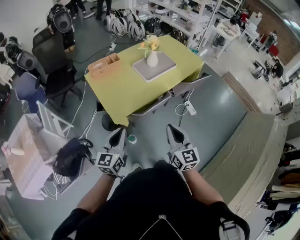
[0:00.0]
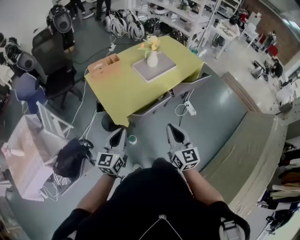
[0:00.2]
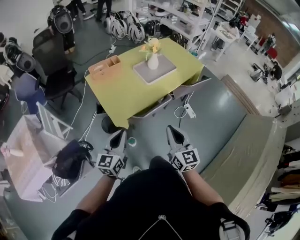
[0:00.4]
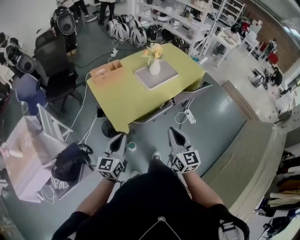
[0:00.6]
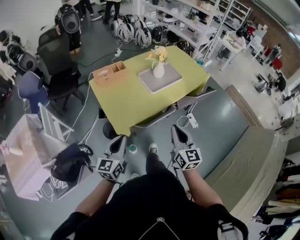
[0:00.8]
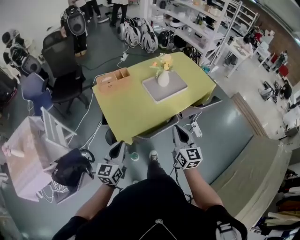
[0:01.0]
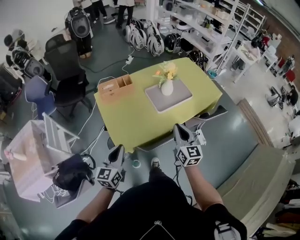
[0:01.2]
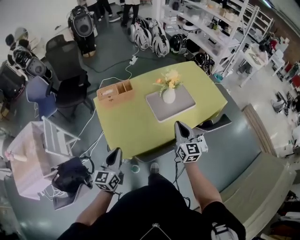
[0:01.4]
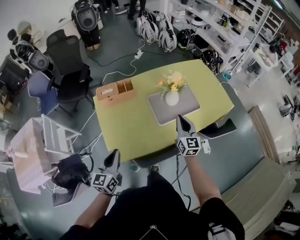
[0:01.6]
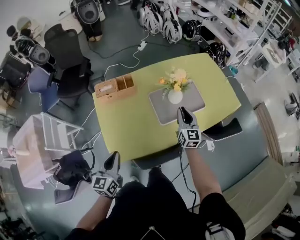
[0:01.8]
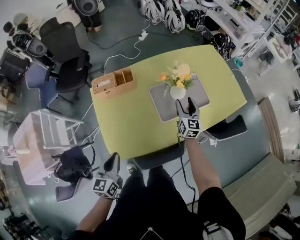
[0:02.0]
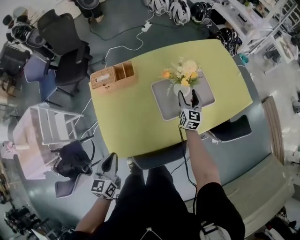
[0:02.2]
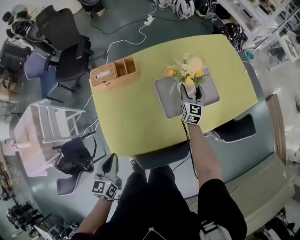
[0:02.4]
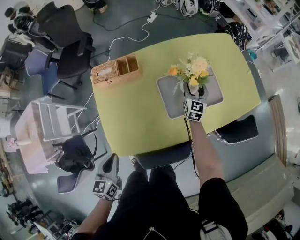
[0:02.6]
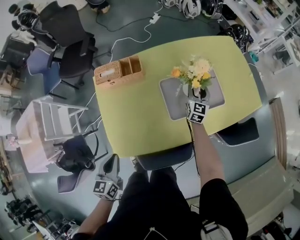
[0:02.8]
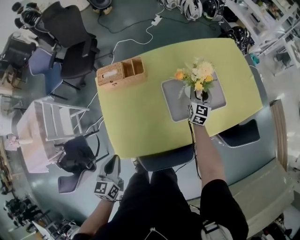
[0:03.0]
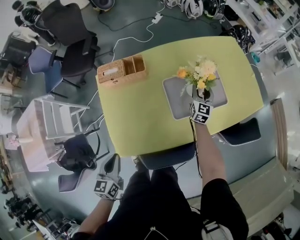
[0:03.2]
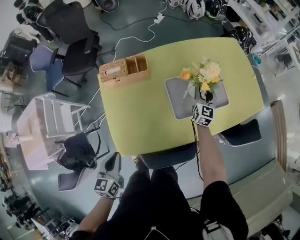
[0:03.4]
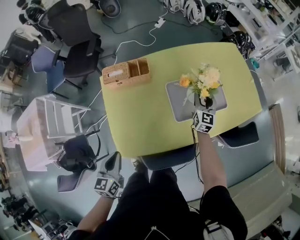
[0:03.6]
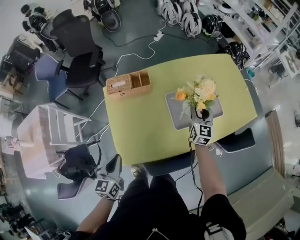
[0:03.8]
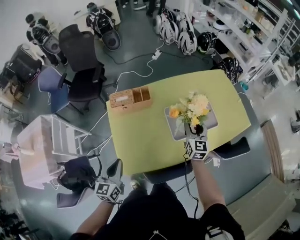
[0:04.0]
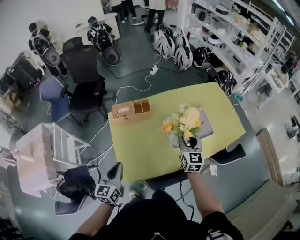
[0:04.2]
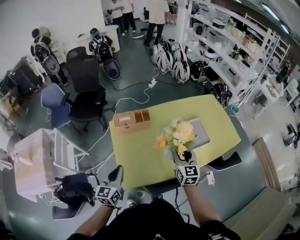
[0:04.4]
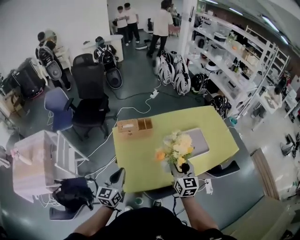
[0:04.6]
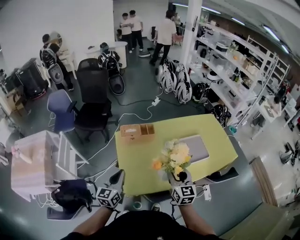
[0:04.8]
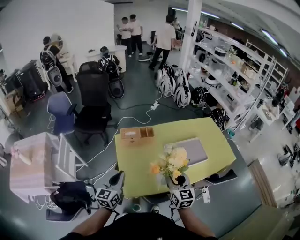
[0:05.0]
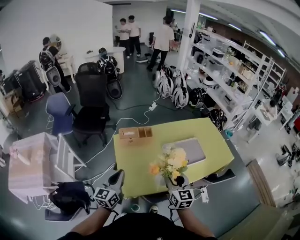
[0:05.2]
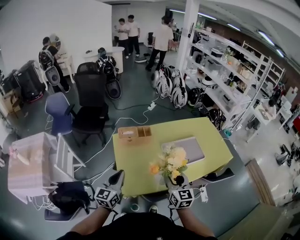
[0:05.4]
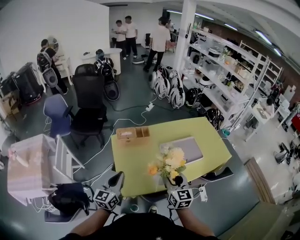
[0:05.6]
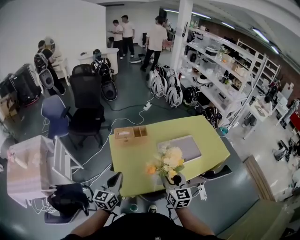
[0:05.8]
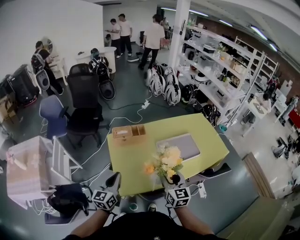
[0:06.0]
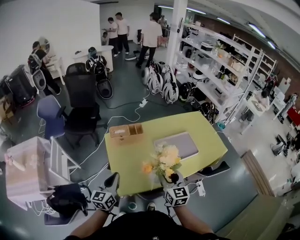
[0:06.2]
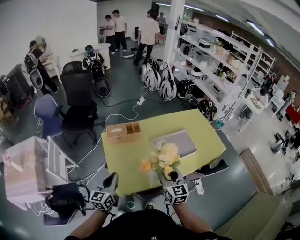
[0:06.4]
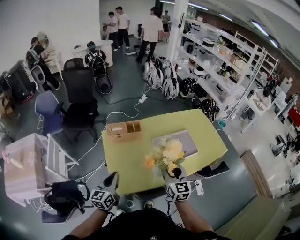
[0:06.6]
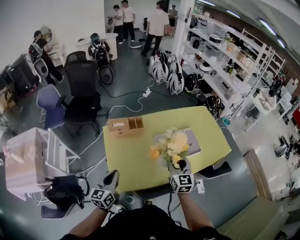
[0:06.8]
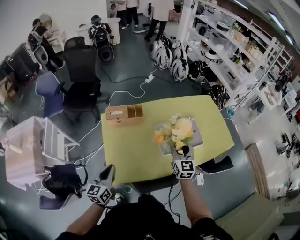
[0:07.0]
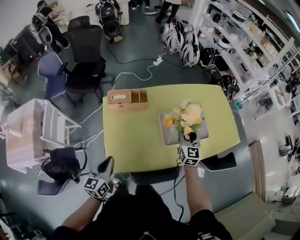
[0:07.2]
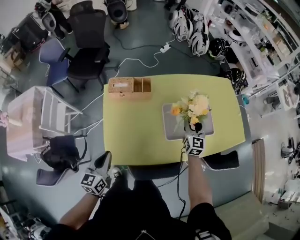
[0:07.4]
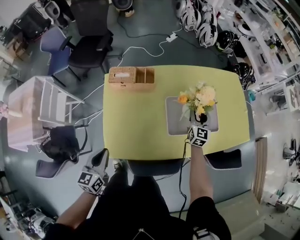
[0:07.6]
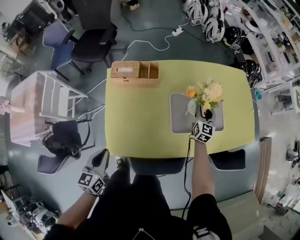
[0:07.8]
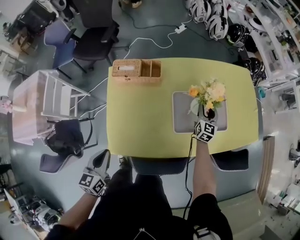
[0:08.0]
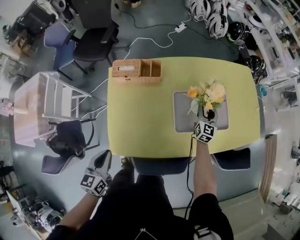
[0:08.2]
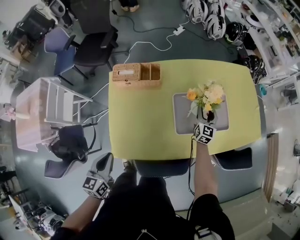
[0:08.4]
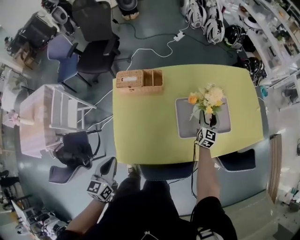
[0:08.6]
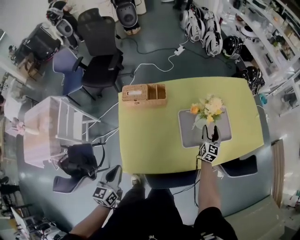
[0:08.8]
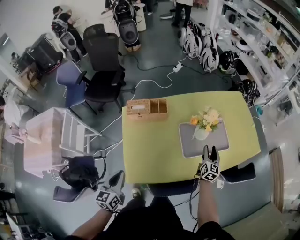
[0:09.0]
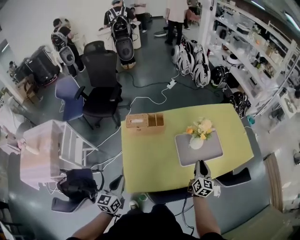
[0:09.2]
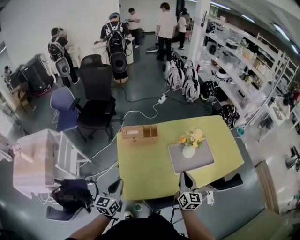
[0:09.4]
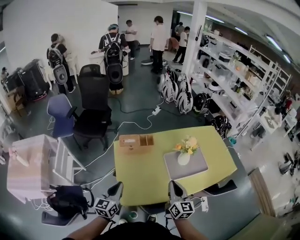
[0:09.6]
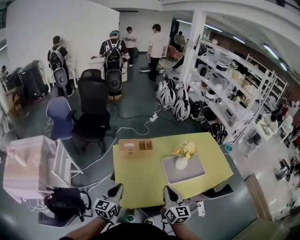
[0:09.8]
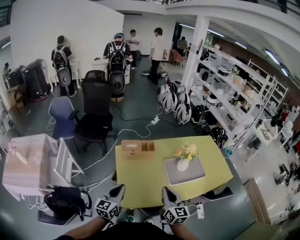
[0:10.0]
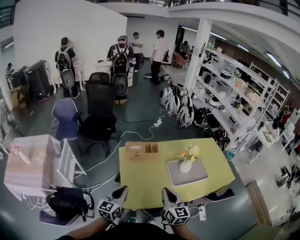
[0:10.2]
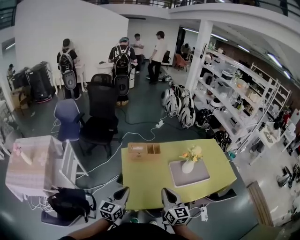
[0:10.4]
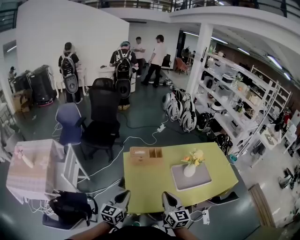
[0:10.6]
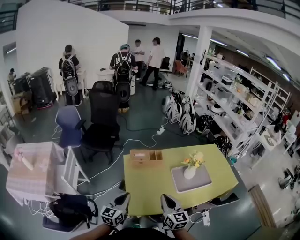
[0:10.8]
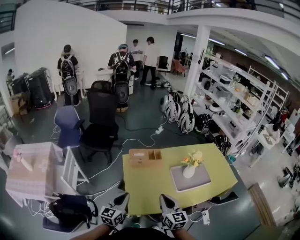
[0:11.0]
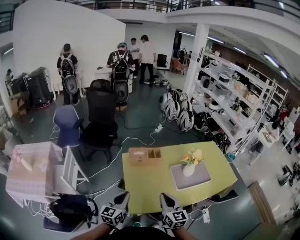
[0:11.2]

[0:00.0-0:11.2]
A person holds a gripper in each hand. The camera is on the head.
0:00.0 to 0:01.6: The right gripper is displaced forward by some 50 cm. The left gripper travels forward by roughly 30 cm, and turns by roughly 20 degrees.
0:01.6 to 0:03.2: The right gripper travels forward and downward by some 30 cm, and opens its fingers. The left gripper heads downward, covering some 10 cm.
0:03.2 to 0:04.8: The right gripper is displaced backward, upward and to the left by about 50 cm. The left gripper heads upward and to the left, covering approximately 15 cm, and turns by approximately 20 degrees.
0:04.8 to 0:06.4: The grippers move only a little.
0:06.4 to 0:08.0: The right gripper goes about 50 cm forward, downward and to the right. Meanwhile the left gripper heads downward, covering approximately 15 cm, and changes its angle by roughly 30 degrees.
0:08.0 to 0:09.6: The right gripper shifts about 50 cm backward, upward and to the left, rotates about 20 degrees, and closes, while the left gripper is displaced upward and to the left by roughly 15 cm, and rotates approximately 20 degrees.
0:09.6 to 0:11.2: The right gripper moves to the left and backward, about 15 cm. The left gripper changes place by approximately 5 cm.

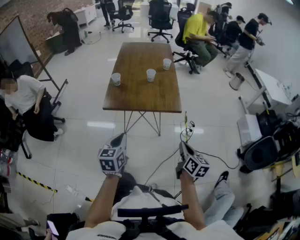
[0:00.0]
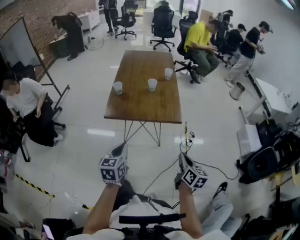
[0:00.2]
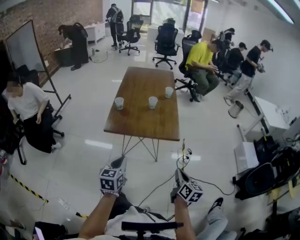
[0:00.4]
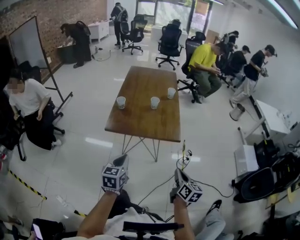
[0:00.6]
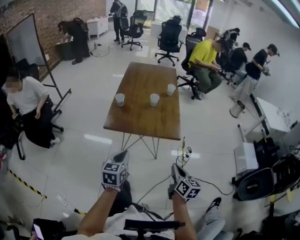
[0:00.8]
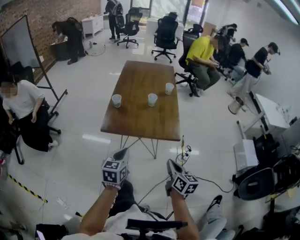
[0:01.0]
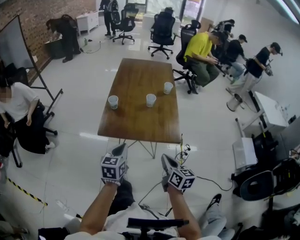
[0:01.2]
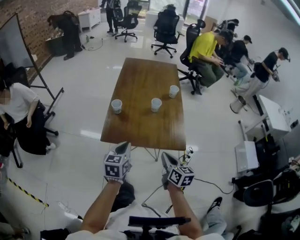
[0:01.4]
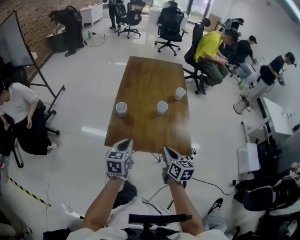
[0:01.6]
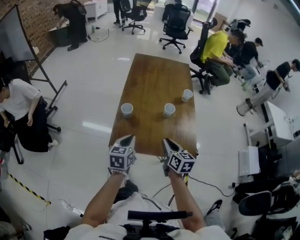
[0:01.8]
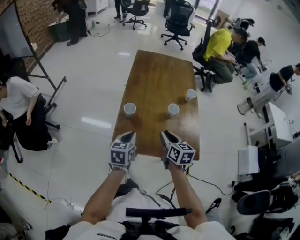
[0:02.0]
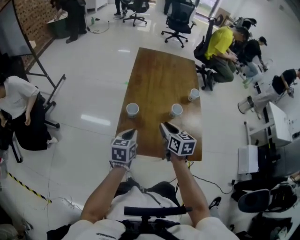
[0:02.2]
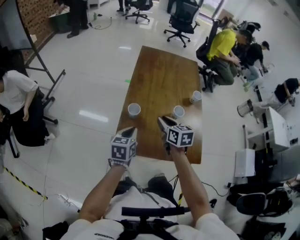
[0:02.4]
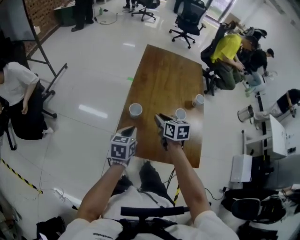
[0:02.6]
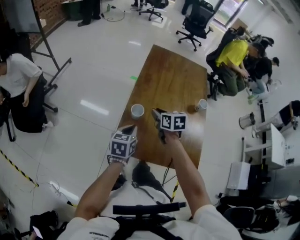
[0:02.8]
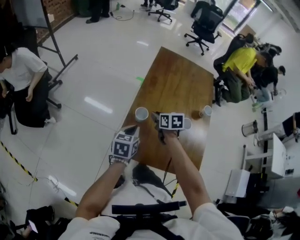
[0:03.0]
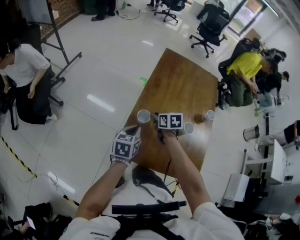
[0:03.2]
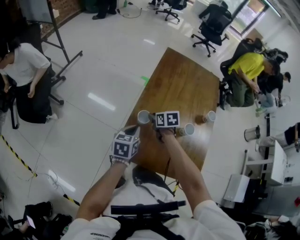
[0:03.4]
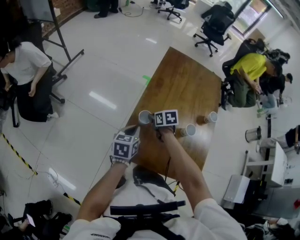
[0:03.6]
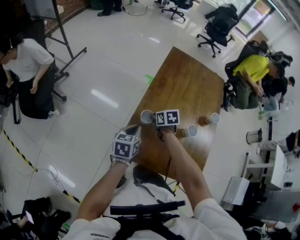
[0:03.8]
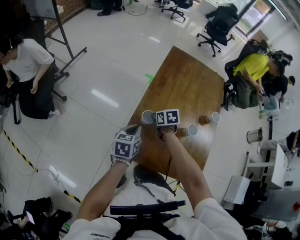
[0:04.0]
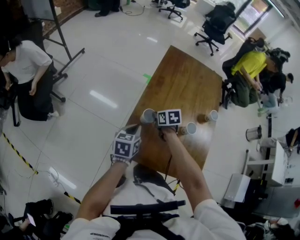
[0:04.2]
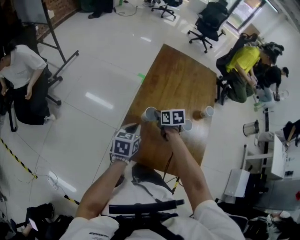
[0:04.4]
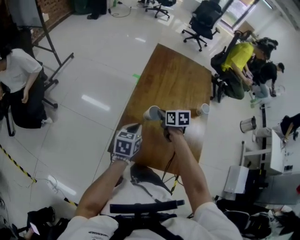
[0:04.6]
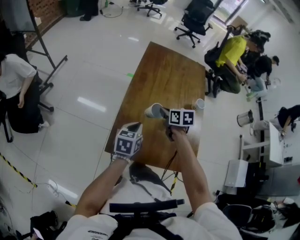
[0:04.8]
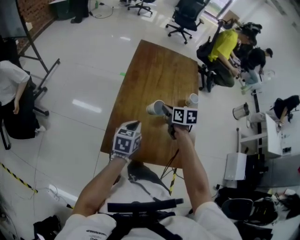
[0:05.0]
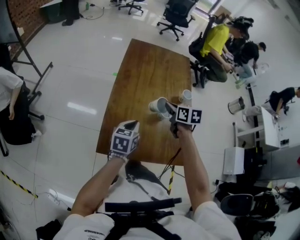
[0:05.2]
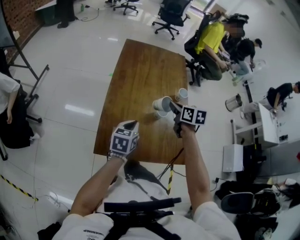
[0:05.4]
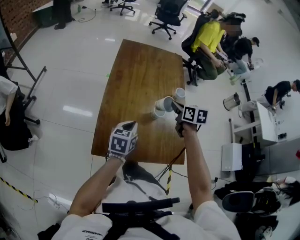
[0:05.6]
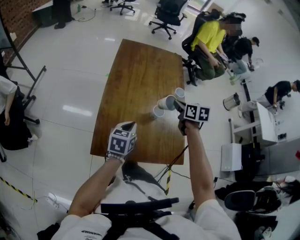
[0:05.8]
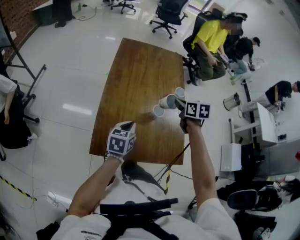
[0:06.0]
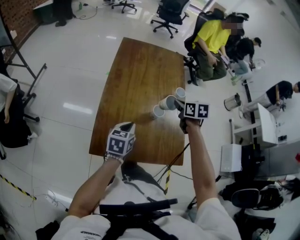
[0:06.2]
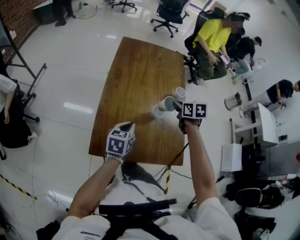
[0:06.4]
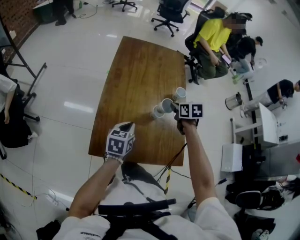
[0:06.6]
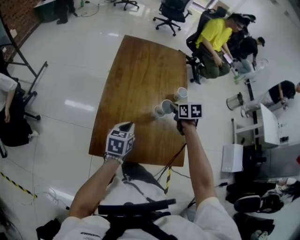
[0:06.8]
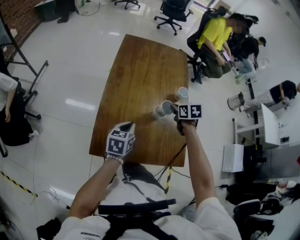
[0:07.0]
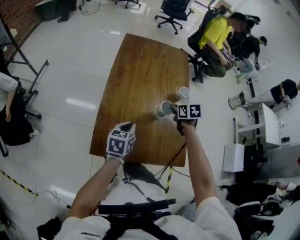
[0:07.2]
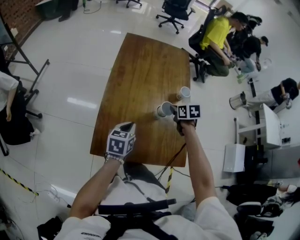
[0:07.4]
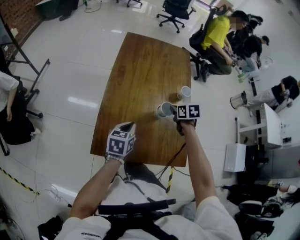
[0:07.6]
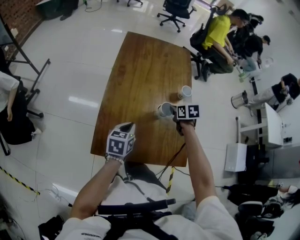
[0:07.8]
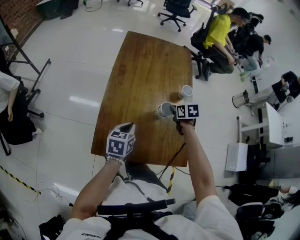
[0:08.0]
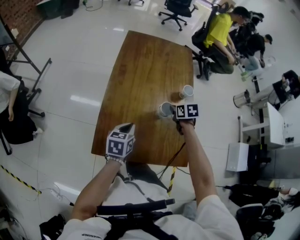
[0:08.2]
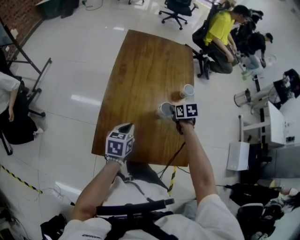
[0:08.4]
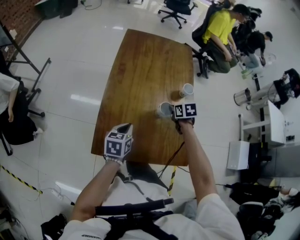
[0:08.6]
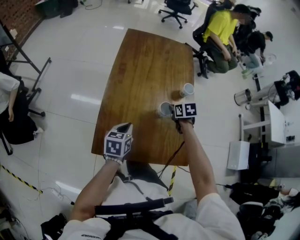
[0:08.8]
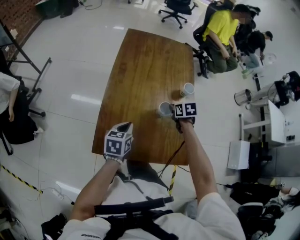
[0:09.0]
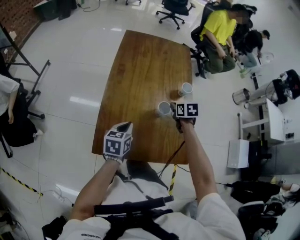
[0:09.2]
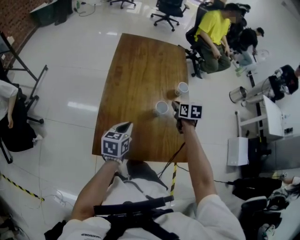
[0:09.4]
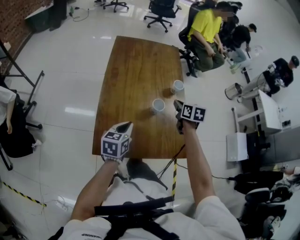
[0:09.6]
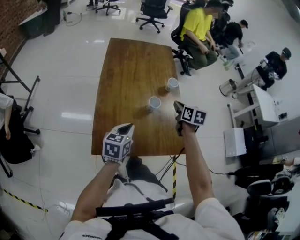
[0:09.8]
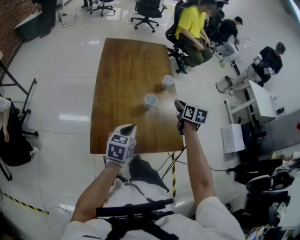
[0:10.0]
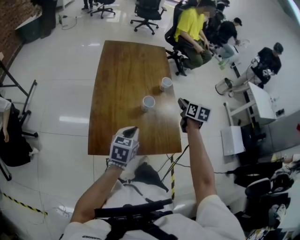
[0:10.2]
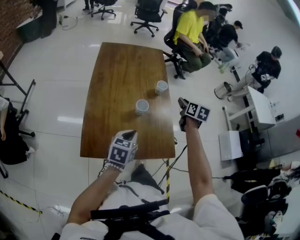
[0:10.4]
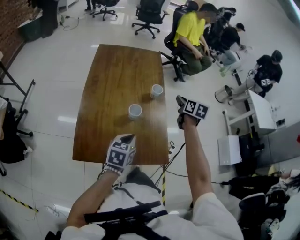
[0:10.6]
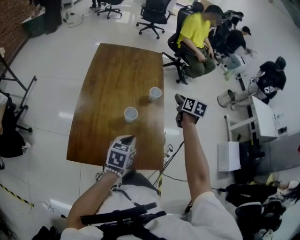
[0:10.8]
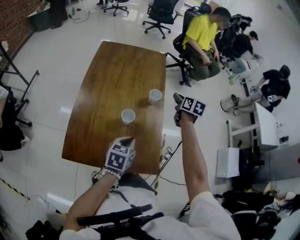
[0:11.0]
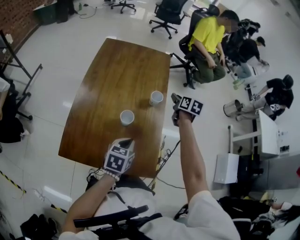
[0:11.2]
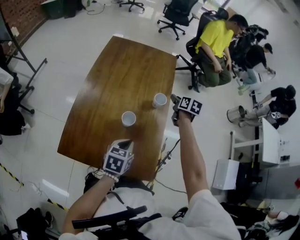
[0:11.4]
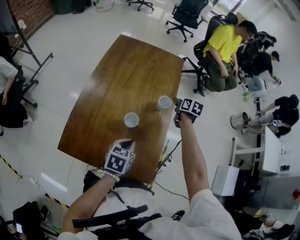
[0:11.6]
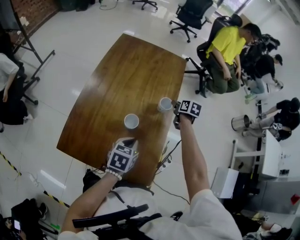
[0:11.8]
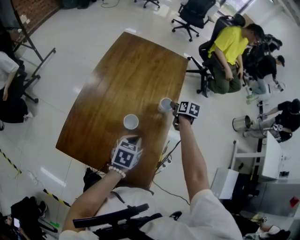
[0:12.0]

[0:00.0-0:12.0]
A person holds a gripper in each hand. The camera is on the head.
0:00.0 to 0:01.6: The right gripper heads forward and to the left, covering some 30 cm, while the left gripper heads forward, covering roughly 25 cm.
0:01.6 to 0:03.0: The left gripper travels forward and to the left by roughly 20 cm, while the right gripper goes some 35 cm forward and to the left, swivels some 30 degrees, and opens up.
0:03.0 to 0:04.4: The right gripper closes its fingers.
0:04.4 to 0:06.0: The right gripper travels to the right and upward by some 30 cm, and changes its angle by some 20 degrees. The left gripper is displaced to the right by approximately 15 cm.
0:06.0 to 0:07.6: The right gripper goes approximately 10 cm downward.
0:07.6 to 0:09.0: The grippers move only a little.
0:09.0 to 0:10.4: The right gripper goes some 25 cm to the right and upward, changes its angle by approximately 40 degrees, and opens; the left gripper is displaced to the right and upward by some 15 cm.
0:10.4 to 0:12.0: The right gripper moves forward and downward, roughly 25 cm, and changes its angle by some 30 degrees, while the left gripper moves forward, to the right and downward, roughly 15 cm, and rotates some 20 degrees.
